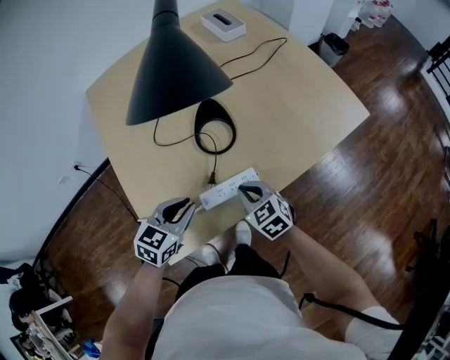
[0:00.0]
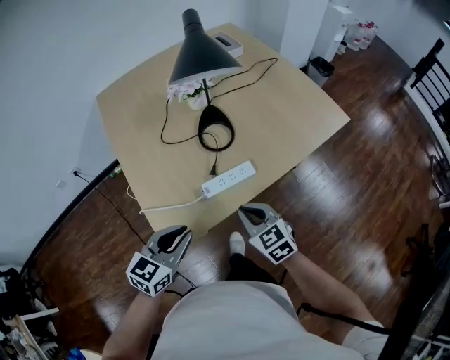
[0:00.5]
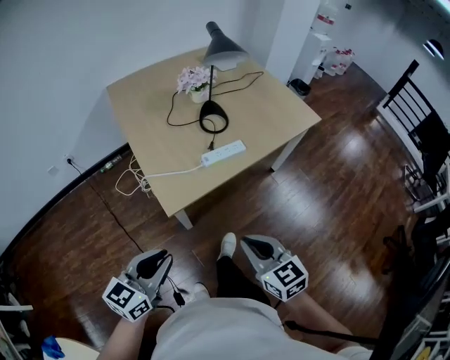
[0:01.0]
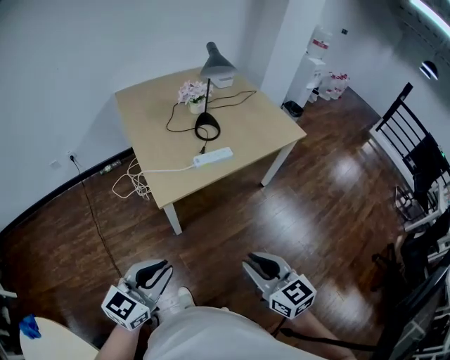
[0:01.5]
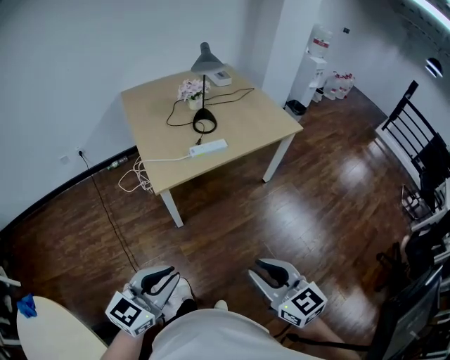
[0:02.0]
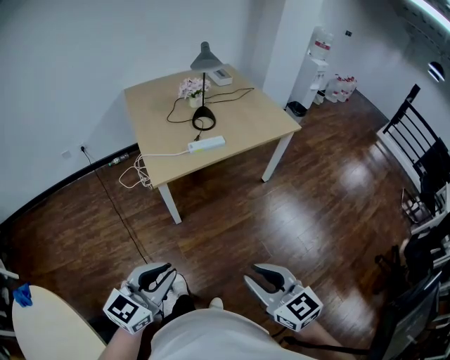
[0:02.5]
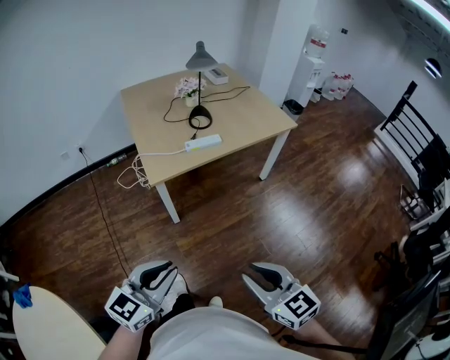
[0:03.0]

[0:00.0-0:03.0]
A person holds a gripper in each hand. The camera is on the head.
0:00.0 to 0:01.5: Both grippers are carried backward, some 50 cm. The right gripper shifts approximately 25 cm upward, and changes its angle by about 20 degrees. Meanwhile the left gripper turns by some 20 degrees.
0:01.5 to 0:03.0: Both grippers travel together backward and to the right, roughly 15 cm.

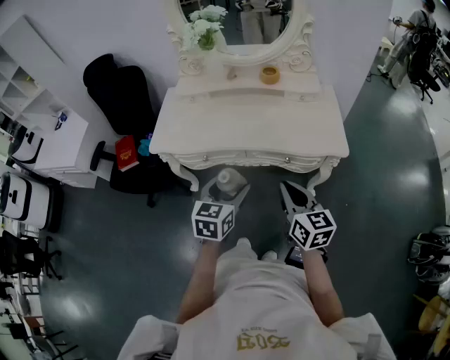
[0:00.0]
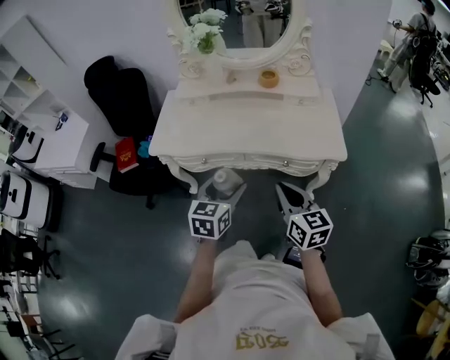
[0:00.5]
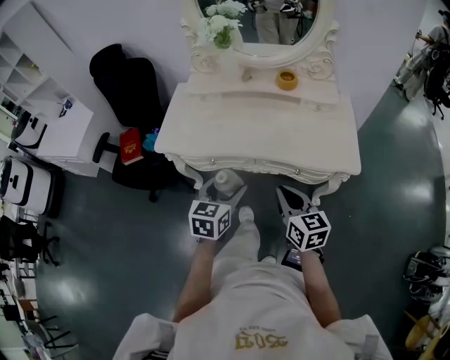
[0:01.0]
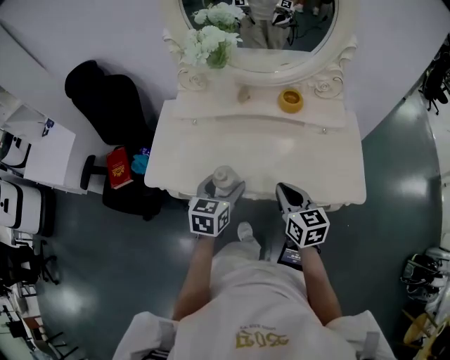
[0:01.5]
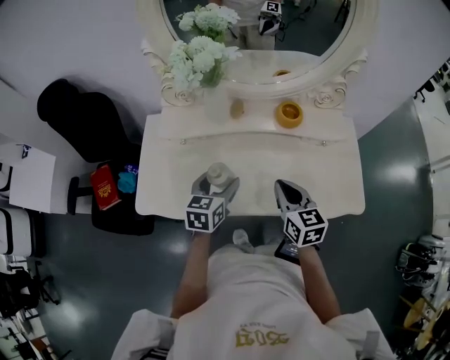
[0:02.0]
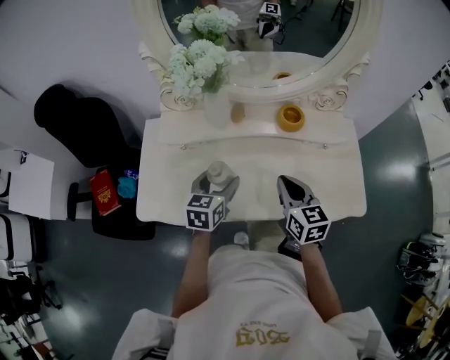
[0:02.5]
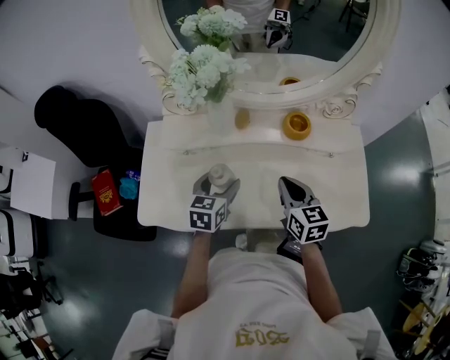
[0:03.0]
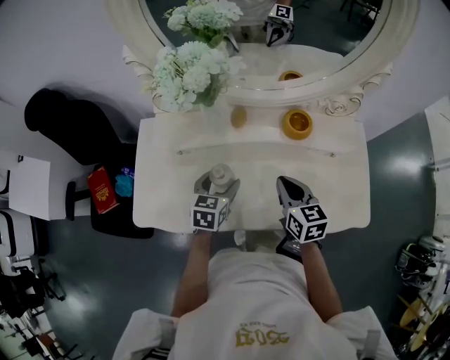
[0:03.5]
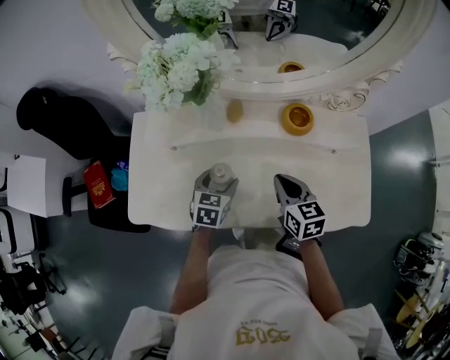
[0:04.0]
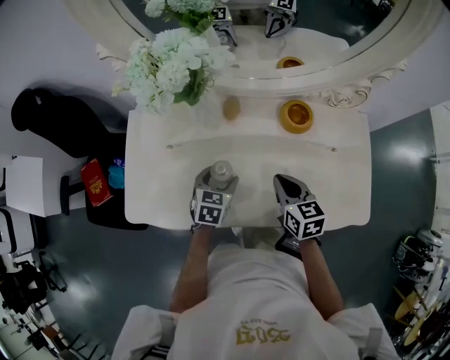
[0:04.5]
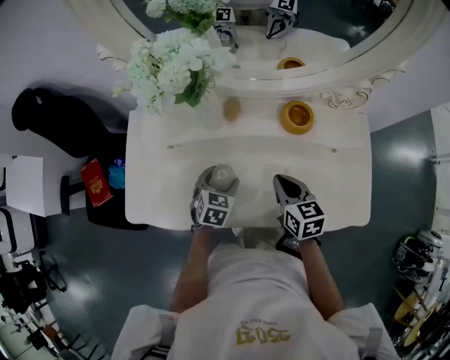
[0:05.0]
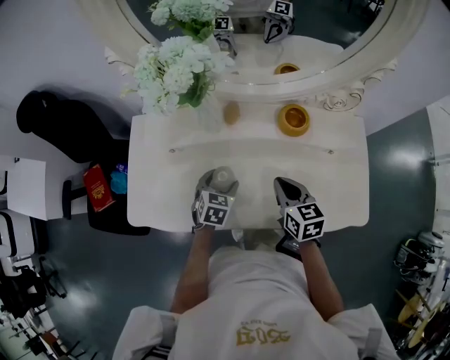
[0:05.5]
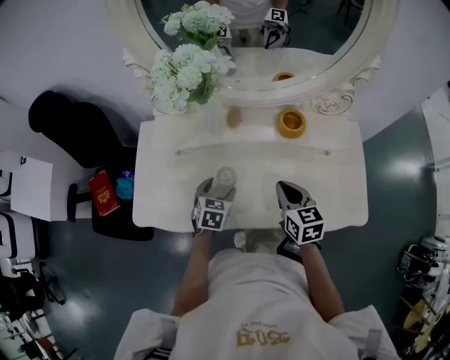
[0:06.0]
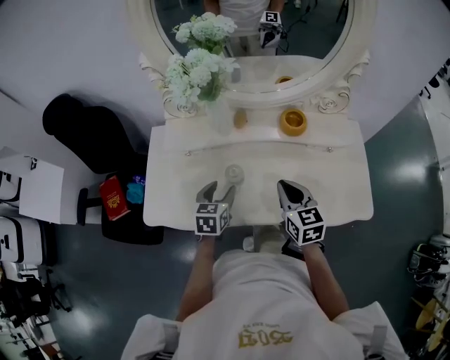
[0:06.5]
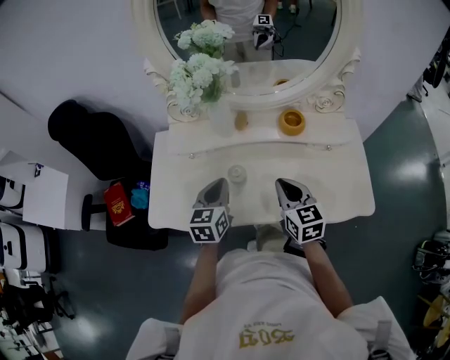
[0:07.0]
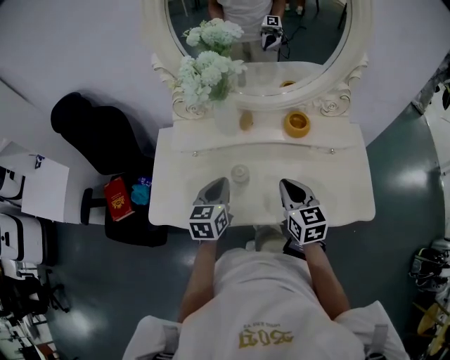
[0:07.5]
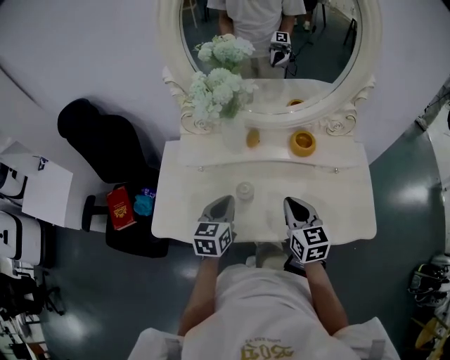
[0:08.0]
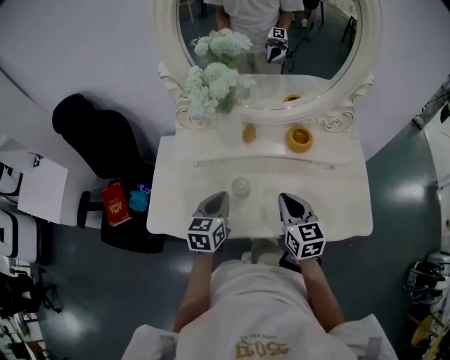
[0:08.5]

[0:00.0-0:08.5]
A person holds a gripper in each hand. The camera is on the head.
0:00.0 to 0:02.0: Both grippers move forward, approximately 30 cm.
0:02.0 to 0:04.0: The left gripper shifts approximately 10 cm downward and forward; the right gripper travels forward and downward by some 10 cm.
0:04.0 to 0:06.5: The right gripper shifts by about 5 cm. The left gripper shifts about 5 cm upward.
0:06.5 to 0:08.5: The left gripper travels upward by some 5 cm, and closes its fingers.

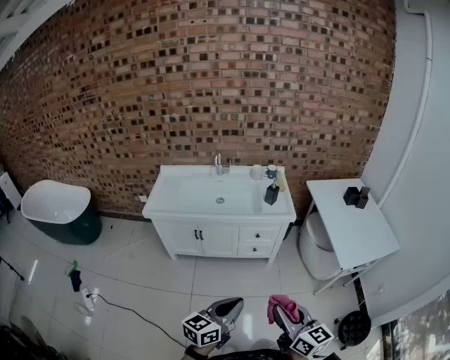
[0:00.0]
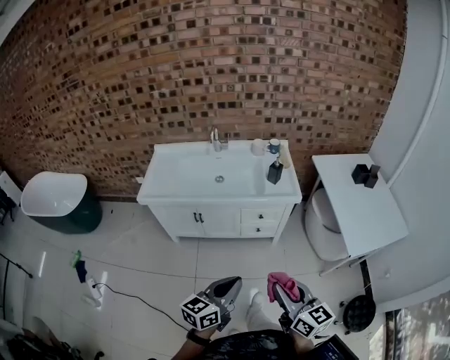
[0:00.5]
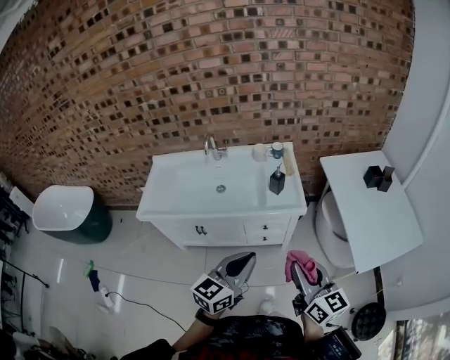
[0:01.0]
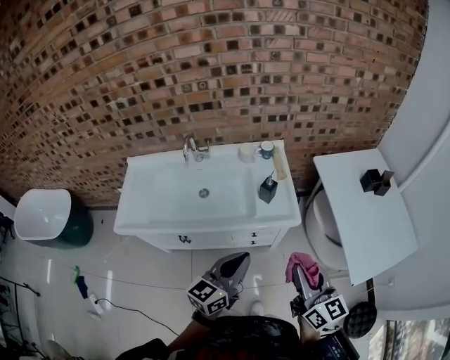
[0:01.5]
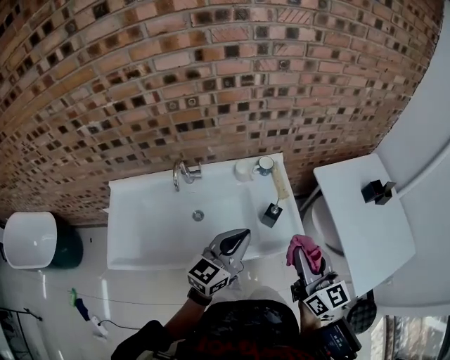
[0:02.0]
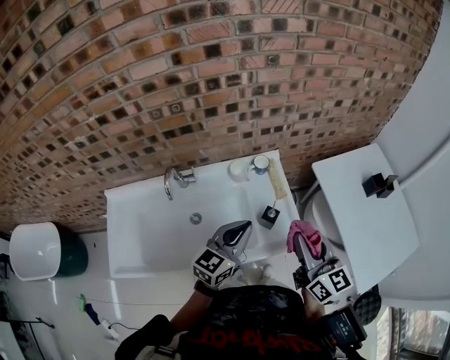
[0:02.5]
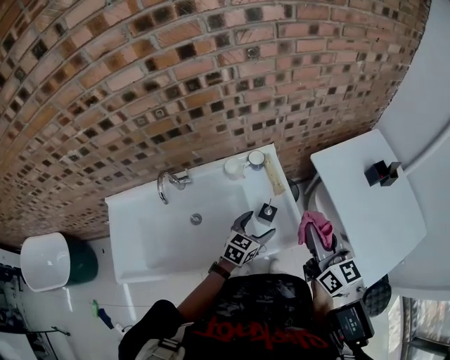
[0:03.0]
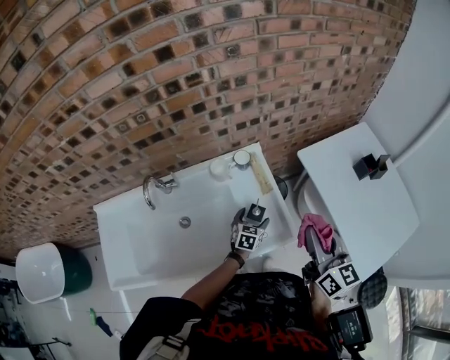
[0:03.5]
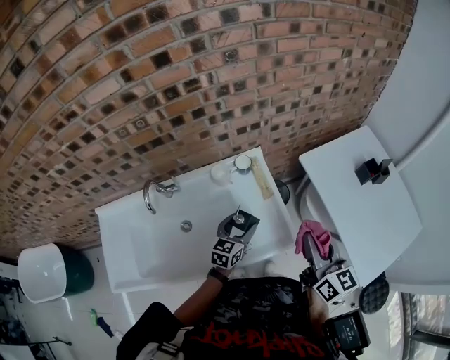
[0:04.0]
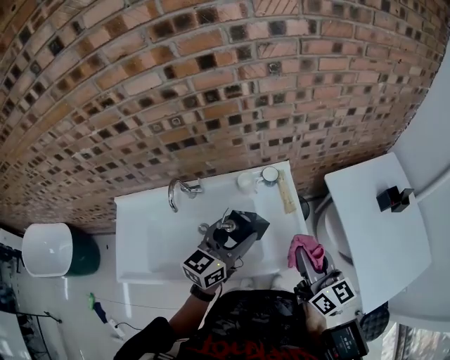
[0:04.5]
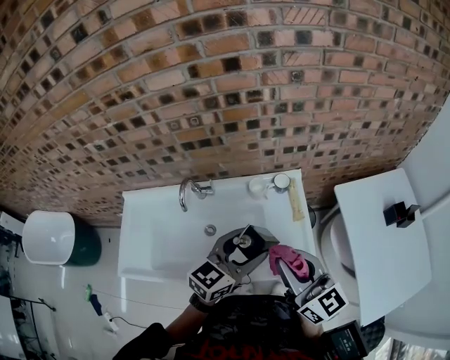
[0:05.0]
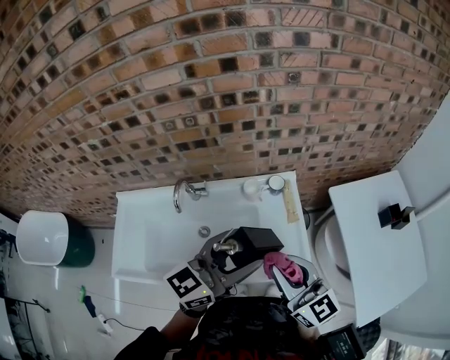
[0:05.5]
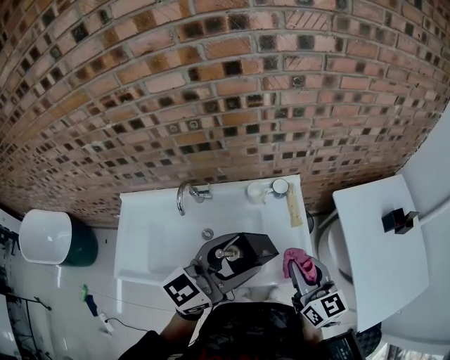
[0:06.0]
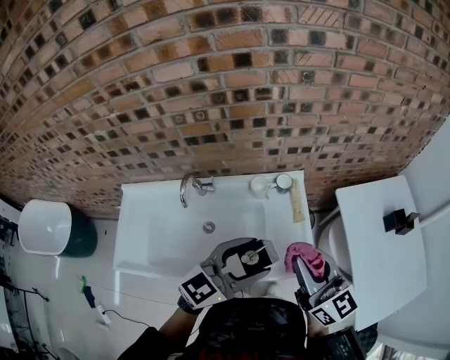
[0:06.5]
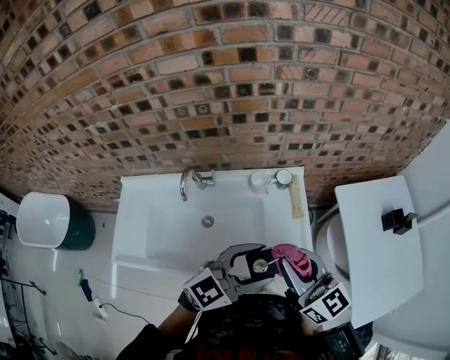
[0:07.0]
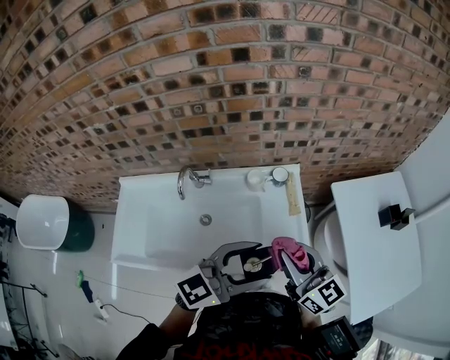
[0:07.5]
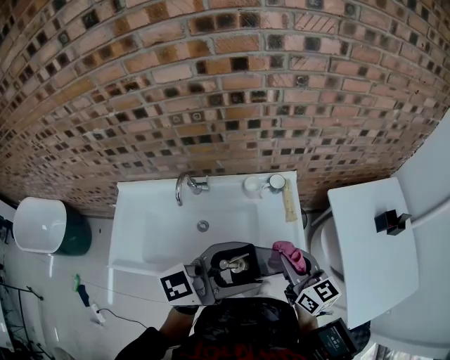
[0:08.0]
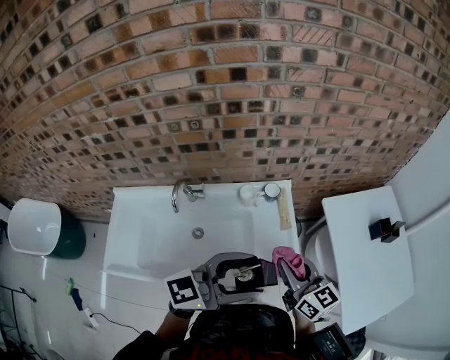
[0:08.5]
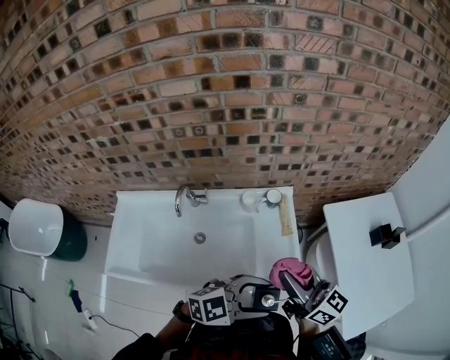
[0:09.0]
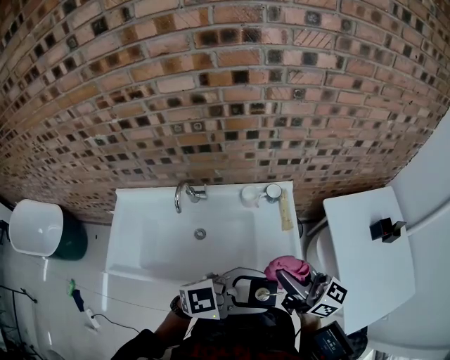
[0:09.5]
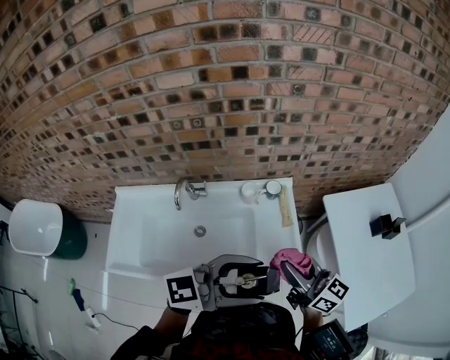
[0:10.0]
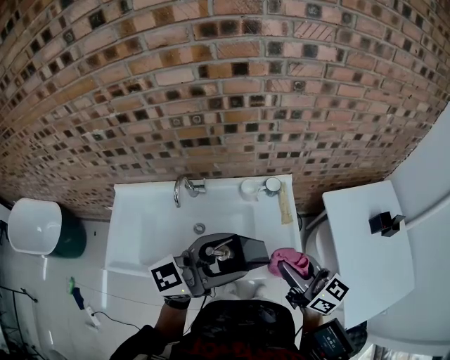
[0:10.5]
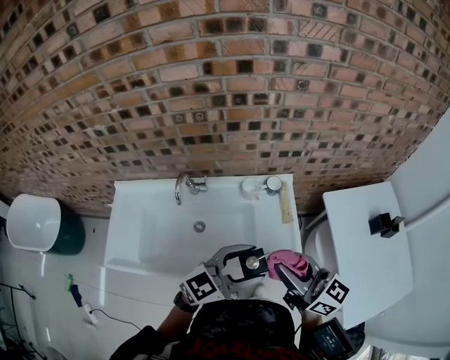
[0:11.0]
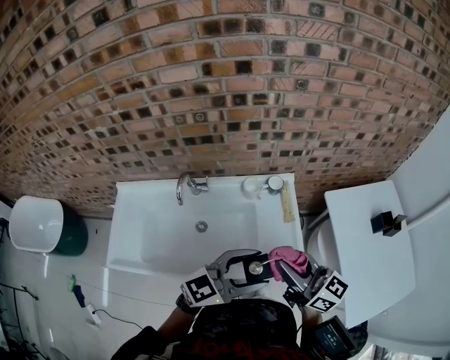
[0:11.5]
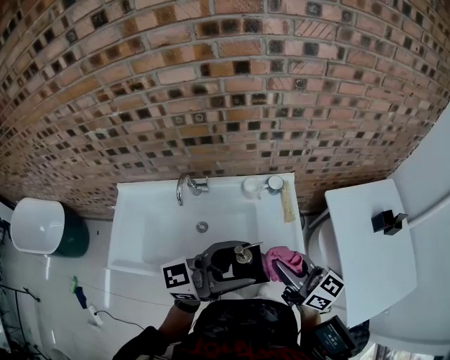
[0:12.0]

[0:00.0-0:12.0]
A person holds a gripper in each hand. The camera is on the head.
0:00.0 to 0:02.0: The pair of grippers is taken forward, some 70 cm.
0:02.0 to 0:04.0: The right gripper is displaced forward, to the right and downward by some 15 cm, while the left gripper is displaced downward and forward by approximately 25 cm, swivels some 20 degrees, and opens up.
0:04.0 to 0:06.0: The right gripper heads to the left, covering roughly 10 cm, and rotates about 20 degrees. The left gripper shifts approximately 30 cm upward, and changes its angle by approximately 30 degrees.
0:06.0 to 0:08.0: The right gripper moves some 5 cm upward and comes back. Meanwhile the left gripper travels backward by approximately 5 cm, and goes downward and returns, roughly 10 cm each way.
0:08.0 to 0:10.0: The right gripper moves upward, roughly 5 cm, and turns by about 20 degrees; the left gripper goes downward and returns, about 10 cm each way.
0:10.0 to 0:12.0: The left gripper goes downward and returns, about 10 cm each way.

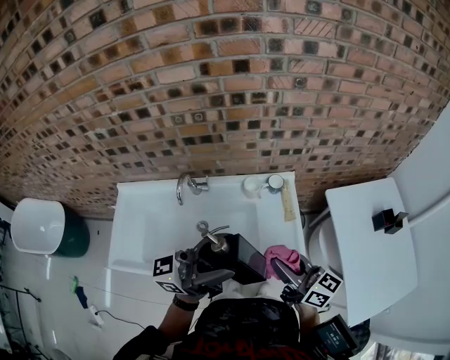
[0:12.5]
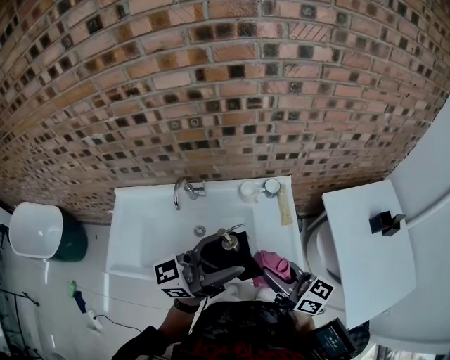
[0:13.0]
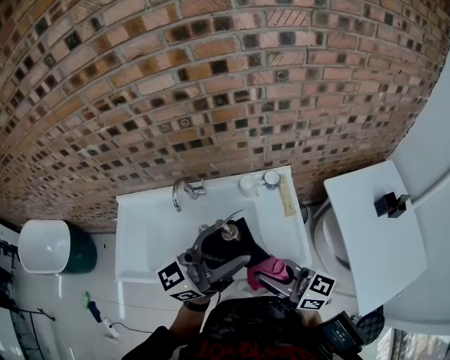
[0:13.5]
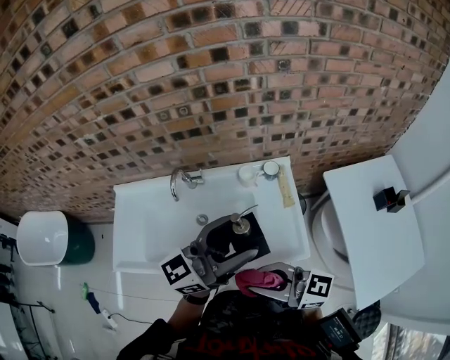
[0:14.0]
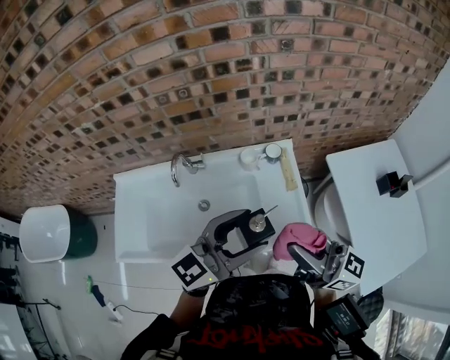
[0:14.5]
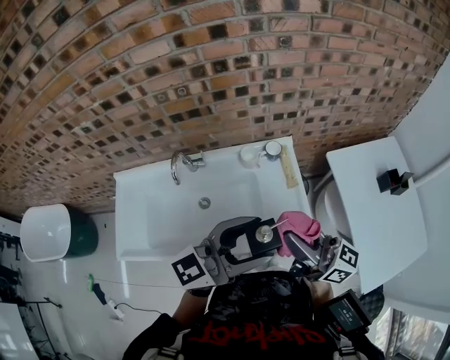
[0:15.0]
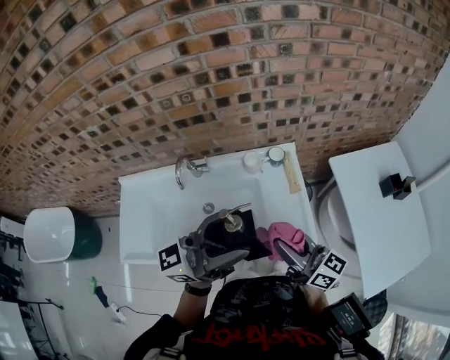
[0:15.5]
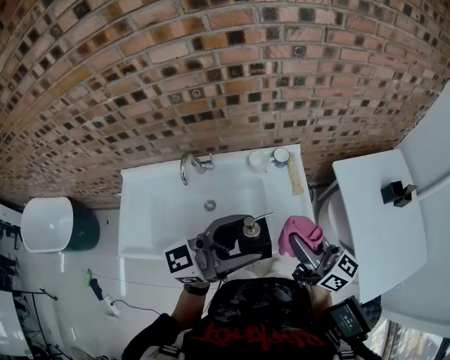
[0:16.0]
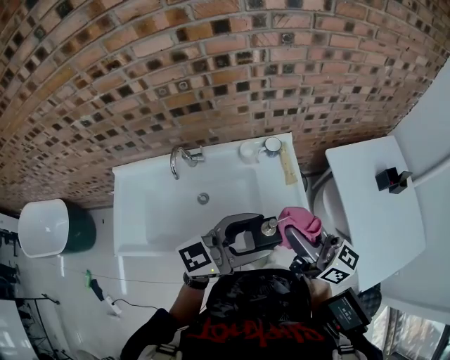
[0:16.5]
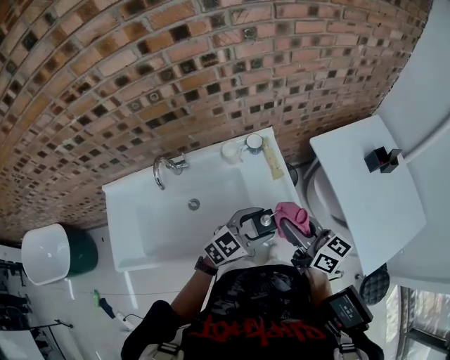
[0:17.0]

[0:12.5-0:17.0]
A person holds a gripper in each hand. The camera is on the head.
0:12.5 to 0:14.5: The left gripper ends up approximately 10 cm from where it was, and rotates about 40 degrees, while the right gripper heads upward, covering about 10 cm.
0:14.5 to 0:17.0: The right gripper moves up and down over approximately 15 cm, changing direction 2 times, and turns by some 30 degrees. The left gripper heads downward, covering roughly 20 cm, and changes its angle by approximately 30 degrees.
